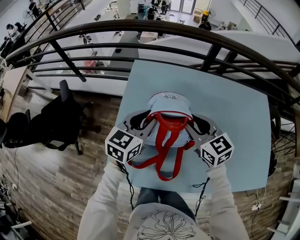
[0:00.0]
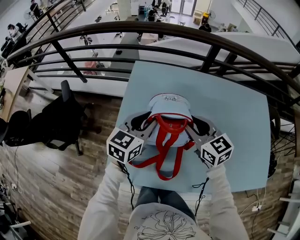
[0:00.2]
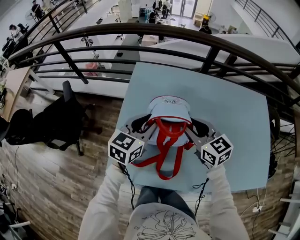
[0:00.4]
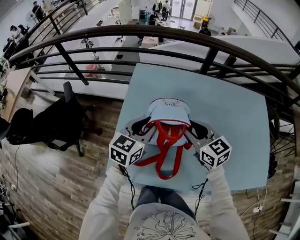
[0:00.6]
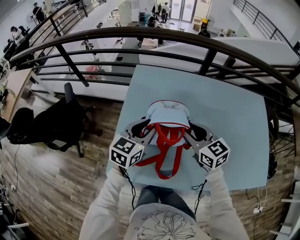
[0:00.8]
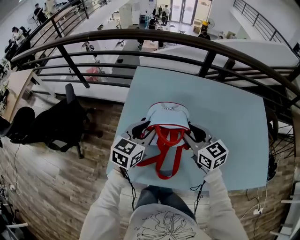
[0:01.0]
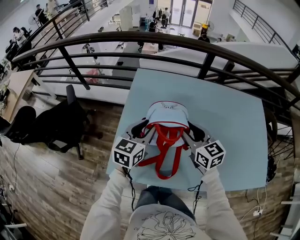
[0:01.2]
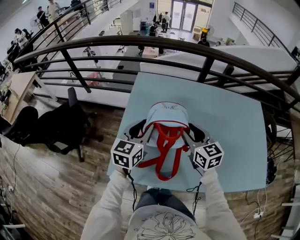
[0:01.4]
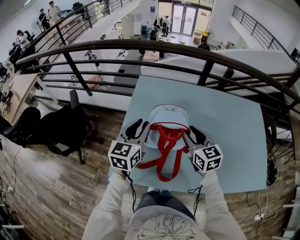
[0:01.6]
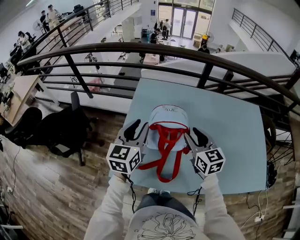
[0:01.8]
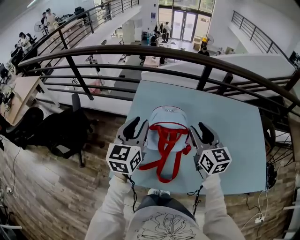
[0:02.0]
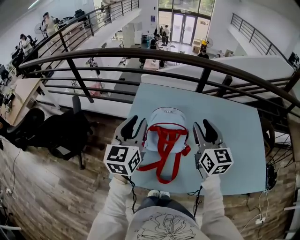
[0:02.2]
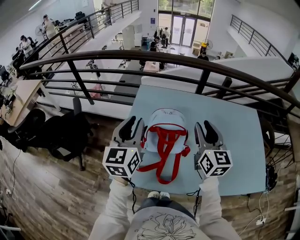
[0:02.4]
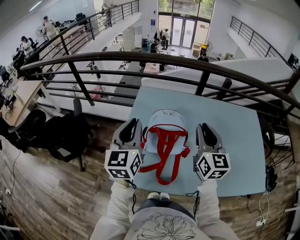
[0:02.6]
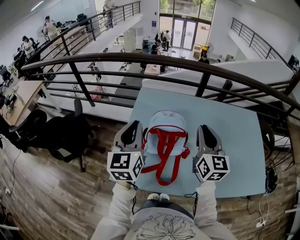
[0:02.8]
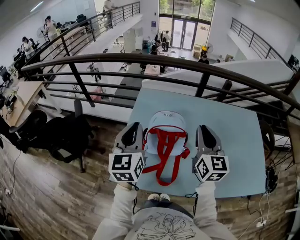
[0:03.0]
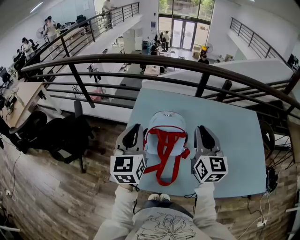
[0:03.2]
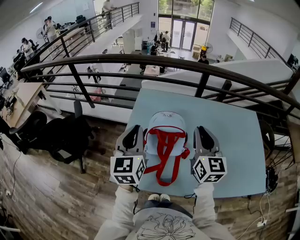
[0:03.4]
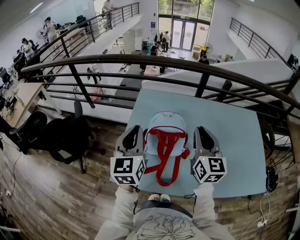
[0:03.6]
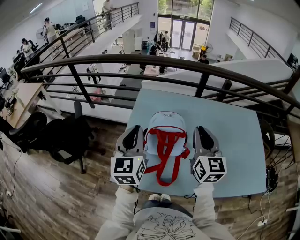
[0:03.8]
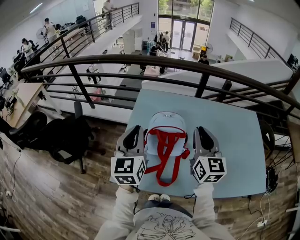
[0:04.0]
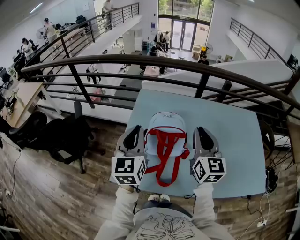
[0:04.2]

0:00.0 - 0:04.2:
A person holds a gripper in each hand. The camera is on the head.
0:00.0 - 0:01.4: The two grippers go about 5 cm backward.
0:01.4 - 0:02.8: The right gripper goes approximately 15 cm upward, changes its angle by roughly 30 degrees, and closes its fingers. The left gripper goes approximately 15 cm upward and backward, turns by some 20 degrees, and closes.
0:02.8 - 0:04.2: The grippers make only small movements.

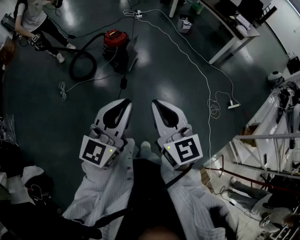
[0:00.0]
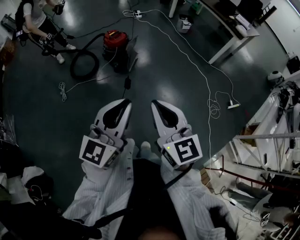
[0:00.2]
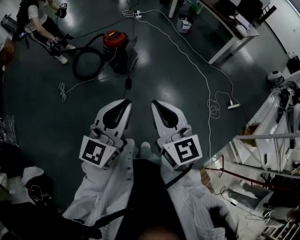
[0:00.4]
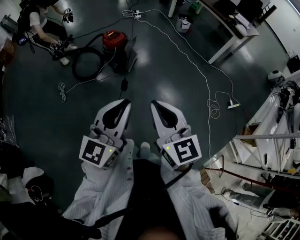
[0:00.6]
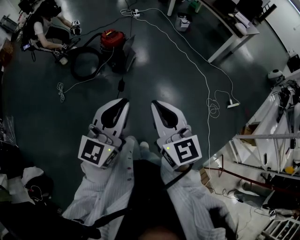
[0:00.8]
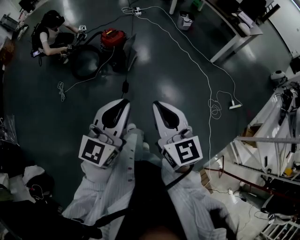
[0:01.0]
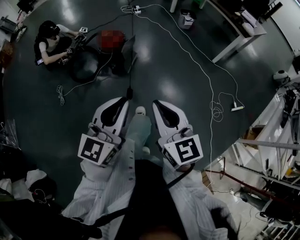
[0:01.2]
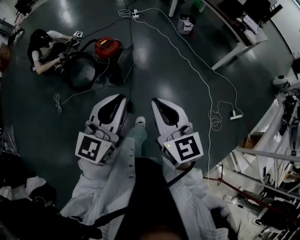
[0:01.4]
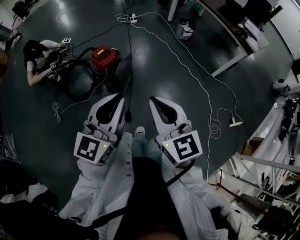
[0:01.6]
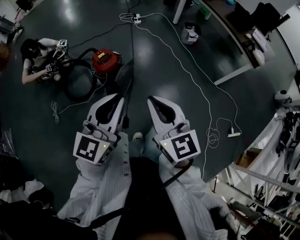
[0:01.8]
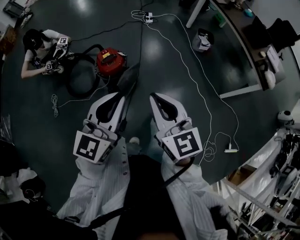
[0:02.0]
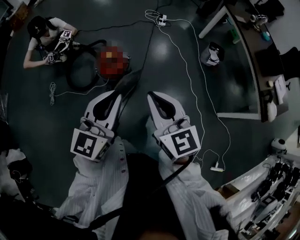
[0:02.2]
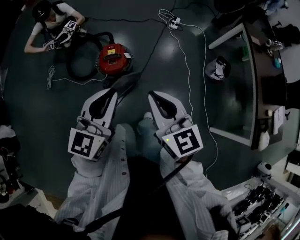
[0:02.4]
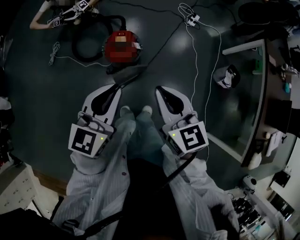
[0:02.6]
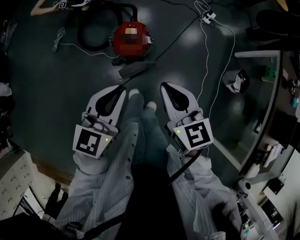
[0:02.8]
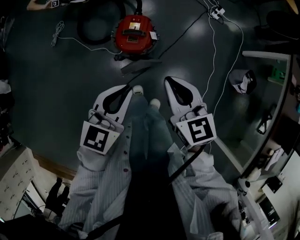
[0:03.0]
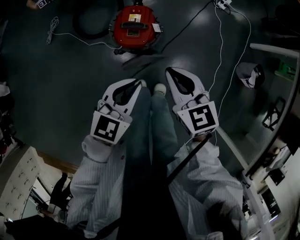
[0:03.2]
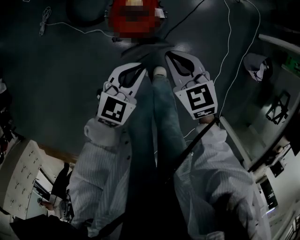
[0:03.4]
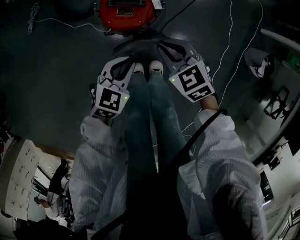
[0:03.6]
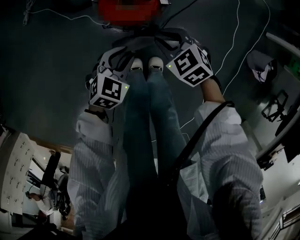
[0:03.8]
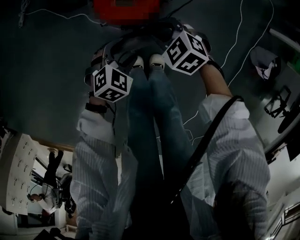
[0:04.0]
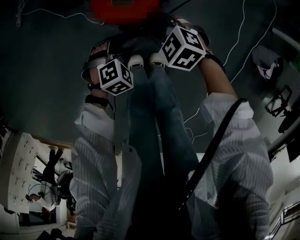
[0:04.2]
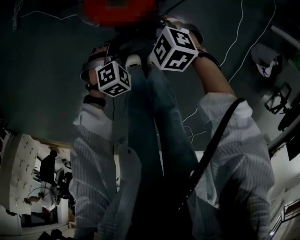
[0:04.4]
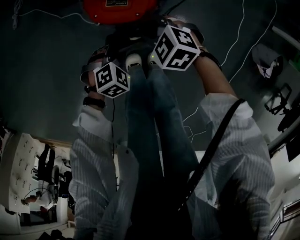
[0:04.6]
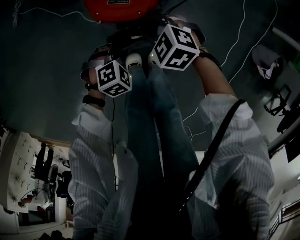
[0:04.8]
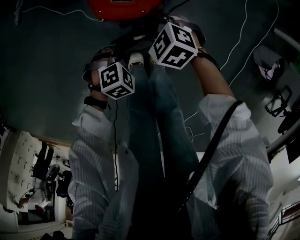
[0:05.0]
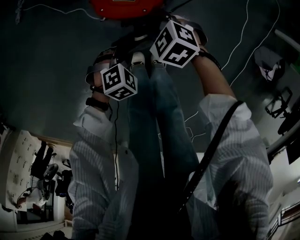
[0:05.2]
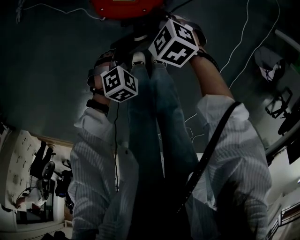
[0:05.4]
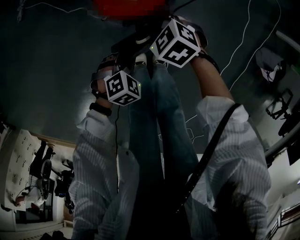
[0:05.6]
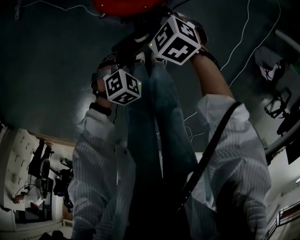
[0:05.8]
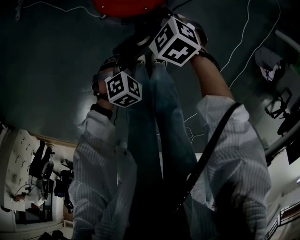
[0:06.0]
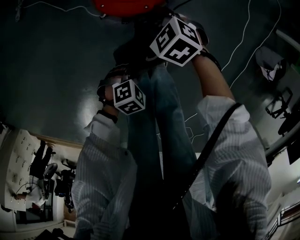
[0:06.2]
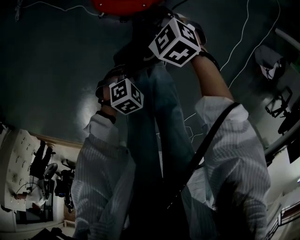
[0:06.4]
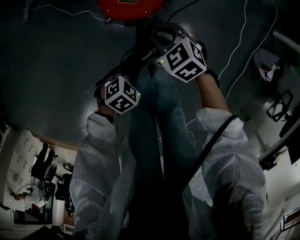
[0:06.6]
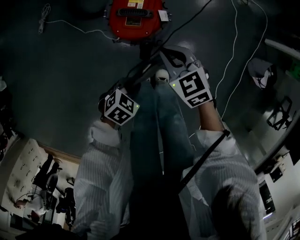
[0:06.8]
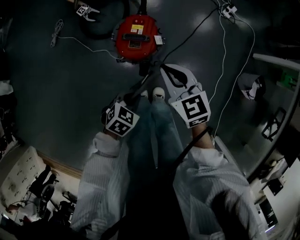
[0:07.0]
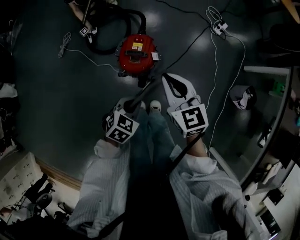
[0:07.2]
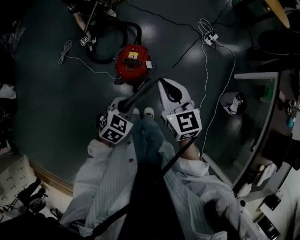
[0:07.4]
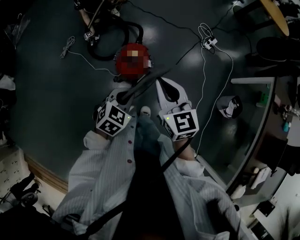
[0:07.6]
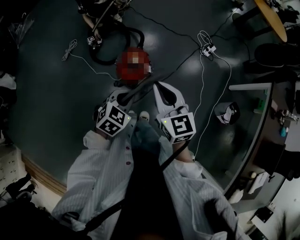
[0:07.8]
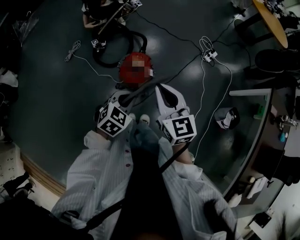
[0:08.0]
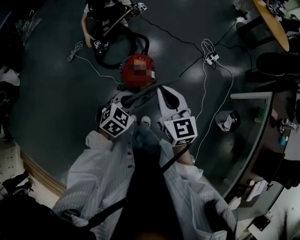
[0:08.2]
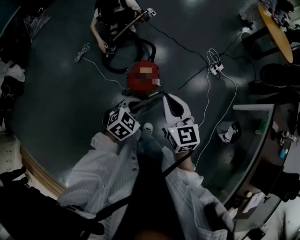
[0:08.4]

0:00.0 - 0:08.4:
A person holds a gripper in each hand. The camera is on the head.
0:00.0 - 0:01.4: Both grippers travel together forward, roughly 25 cm.
0:01.4 - 0:02.8: The two grippers travel together, some 60 cm. The right gripper changes its angle by about 50 degrees; the left gripper turns by about 50 degrees.
0:02.8 - 0:04.2: The two grippers go some 60 cm downward. The right gripper angles its fingers downward, by about 30 degrees, and opens up. Meanwhile the left gripper tips its fingers downward by some 50 degrees, and opens its fingers.
0:04.2 - 0:05.6: The left gripper closes.
0:05.6 - 0:07.0: The grippers both shift upward by some 30 cm. The right gripper angles its fingers upward, by roughly 30 degrees.
0:07.0 - 0:08.4: The two grippers go about 25 cm upward.

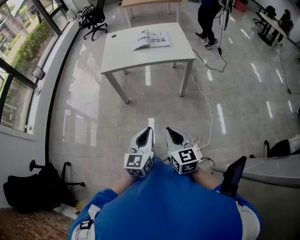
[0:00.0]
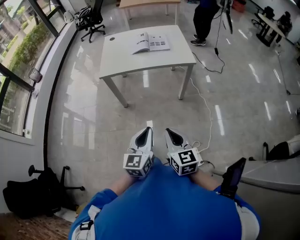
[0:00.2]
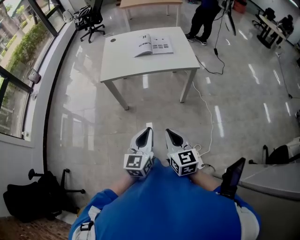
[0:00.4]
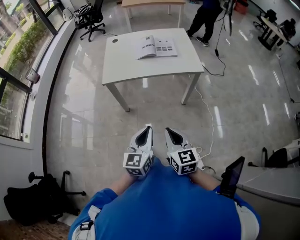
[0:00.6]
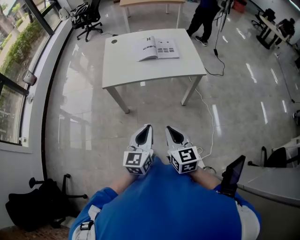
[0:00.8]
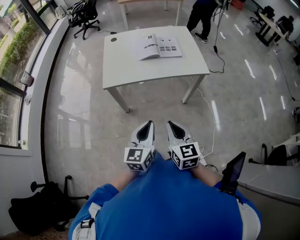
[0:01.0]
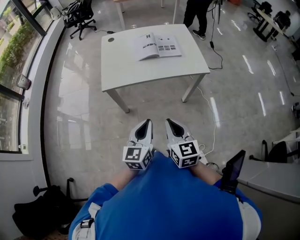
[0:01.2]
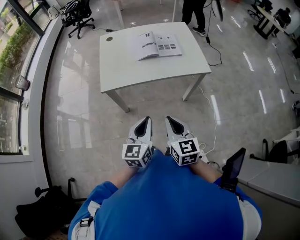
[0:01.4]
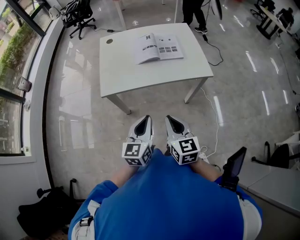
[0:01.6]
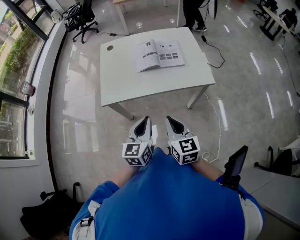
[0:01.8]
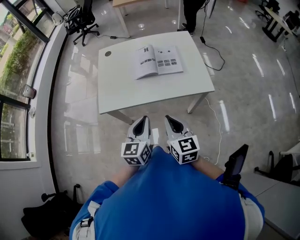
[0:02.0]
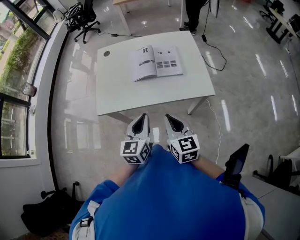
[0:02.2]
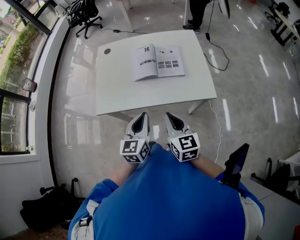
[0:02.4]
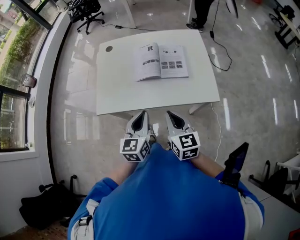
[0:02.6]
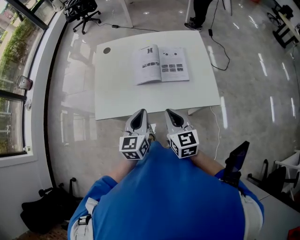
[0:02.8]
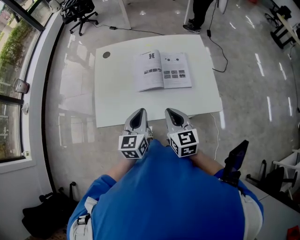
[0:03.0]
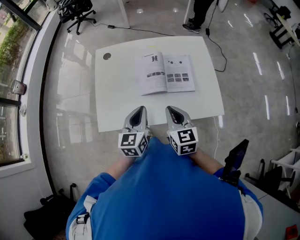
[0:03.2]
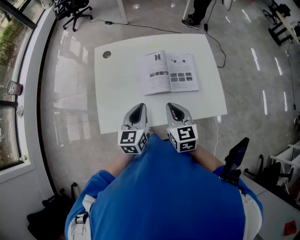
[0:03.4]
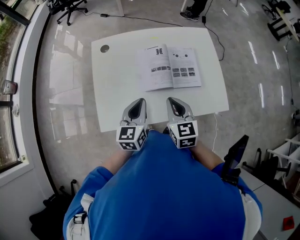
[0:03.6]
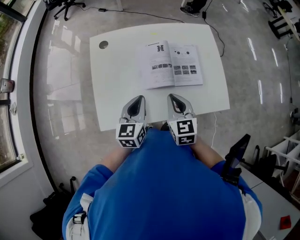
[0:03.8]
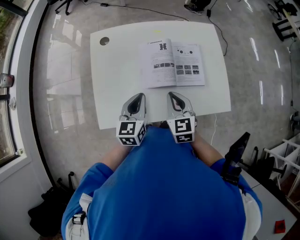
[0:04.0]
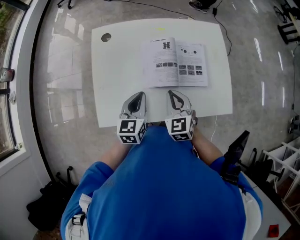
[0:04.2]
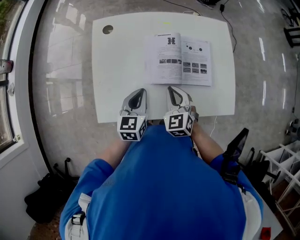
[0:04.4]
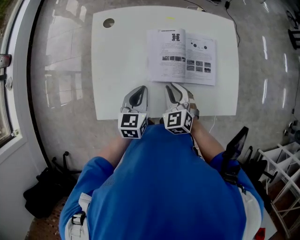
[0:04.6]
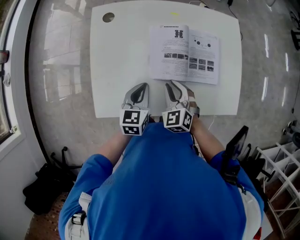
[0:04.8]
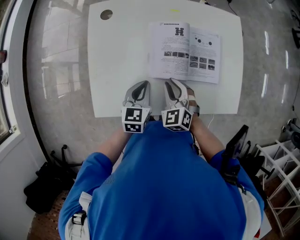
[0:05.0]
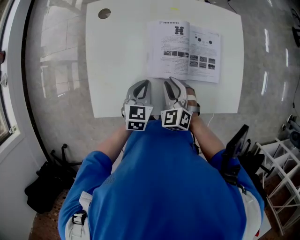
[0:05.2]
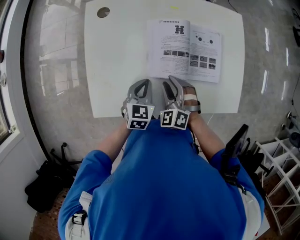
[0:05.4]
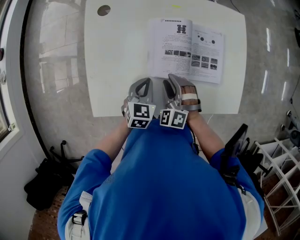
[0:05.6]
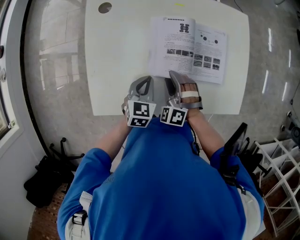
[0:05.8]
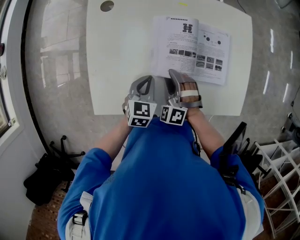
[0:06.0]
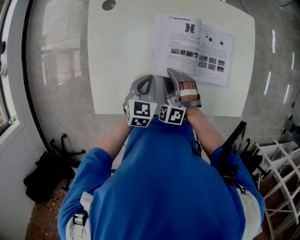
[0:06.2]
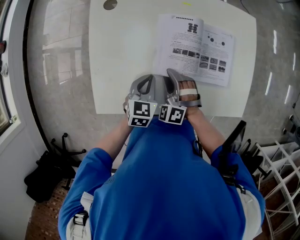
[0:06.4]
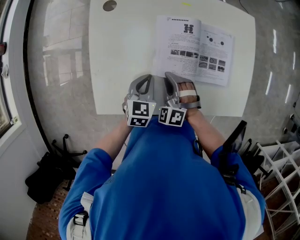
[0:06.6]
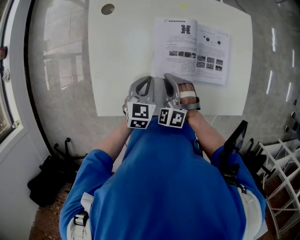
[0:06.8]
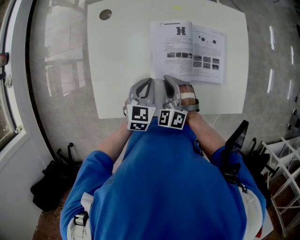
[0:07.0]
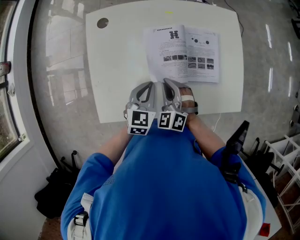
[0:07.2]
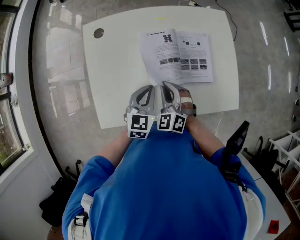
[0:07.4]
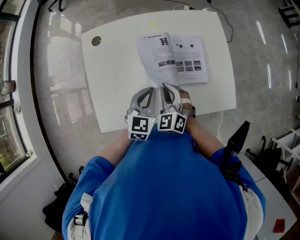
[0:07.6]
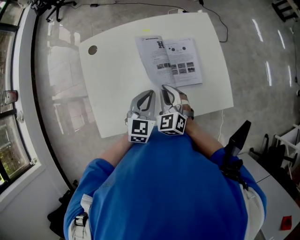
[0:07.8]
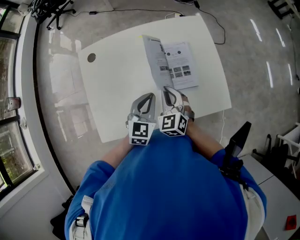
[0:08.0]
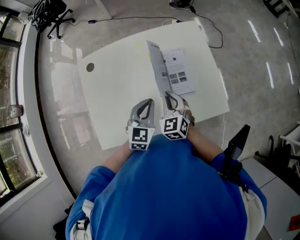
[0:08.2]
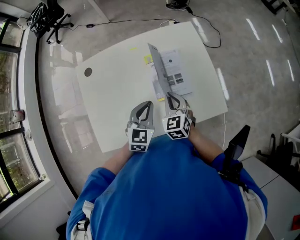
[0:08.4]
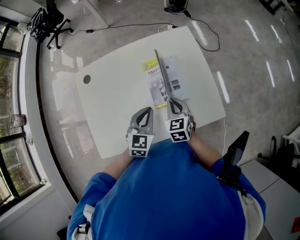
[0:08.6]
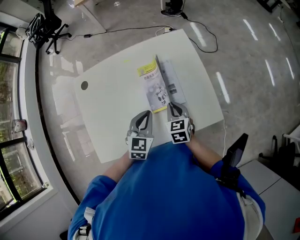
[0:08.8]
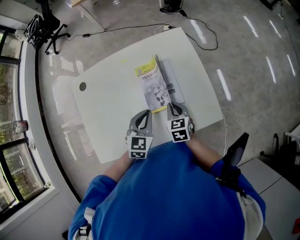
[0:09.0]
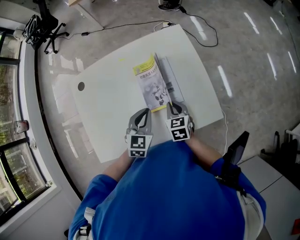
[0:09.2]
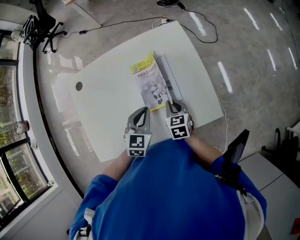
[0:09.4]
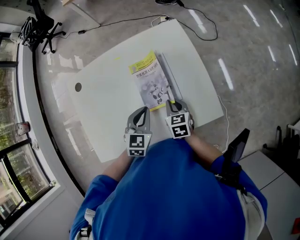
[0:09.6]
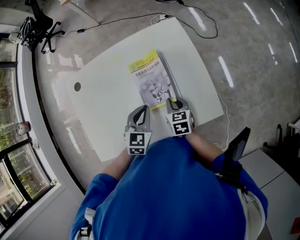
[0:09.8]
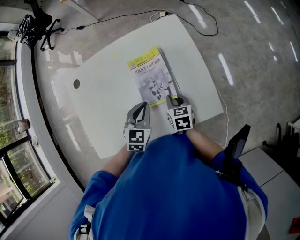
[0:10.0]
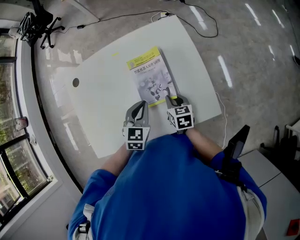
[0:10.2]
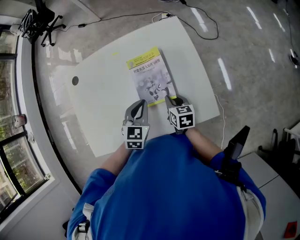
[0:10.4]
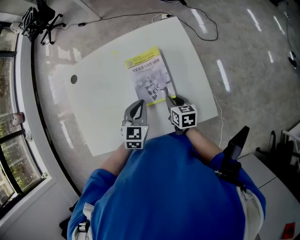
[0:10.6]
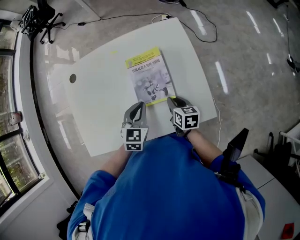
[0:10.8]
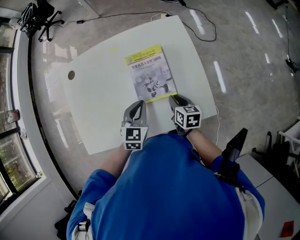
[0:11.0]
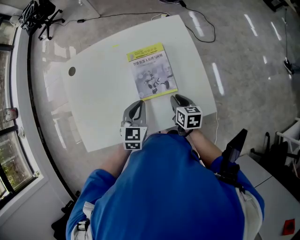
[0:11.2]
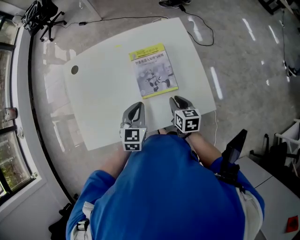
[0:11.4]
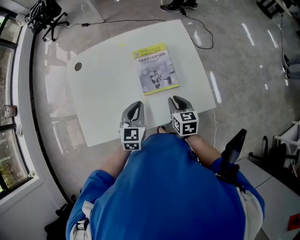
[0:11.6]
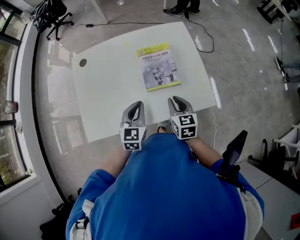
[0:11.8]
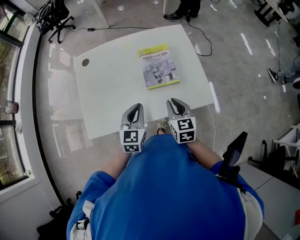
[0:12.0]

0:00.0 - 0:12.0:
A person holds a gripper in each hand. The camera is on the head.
0:00.0 - 0:01.6: Both grippers travel together forward, roughly 30 cm.
0:01.6 - 0:03.0: The two grippers go approximately 30 cm forward.
0:03.0 - 0:04.4: The two grippers go roughly 20 cm forward, downward and to the left. The right gripper turns by some 30 degrees.
0:04.4 - 0:06.0: The two grippers go some 10 cm downward. The right gripper rolls counterclockwise, seen from behind, by approximately 40 degrees, and opens up.
0:06.0 - 0:07.6: The right gripper heads upward, covering about 10 cm, changes its angle by roughly 30 degrees, and closes. The left gripper travels upward and to the right by about 10 cm.
0:07.6 - 0:09.0: The left gripper shifts approximately 10 cm to the right, while the right gripper is displaced to the right by approximately 15 cm, and twists about 40 degrees clockwise, seen from behind.
0:09.0 - 0:10.4: The right gripper shifts by about 5 cm.
0:10.4 - 0:12.0: The left gripper moves backward, to the left and upward, some 15 cm. The right gripper moves backward and upward, about 20 cm, and rotates some 20 degrees.
